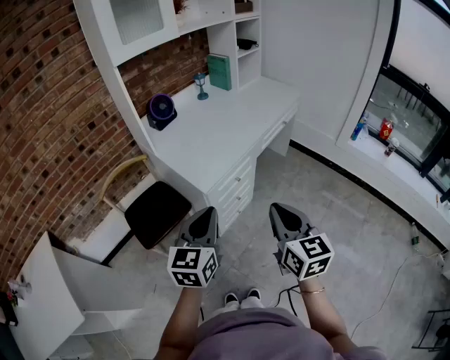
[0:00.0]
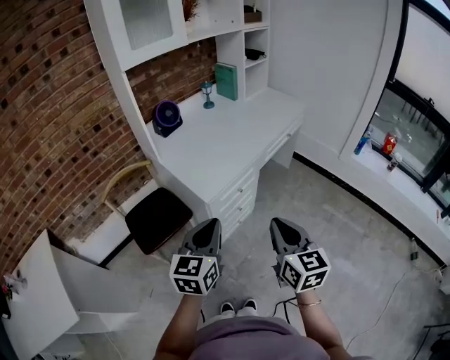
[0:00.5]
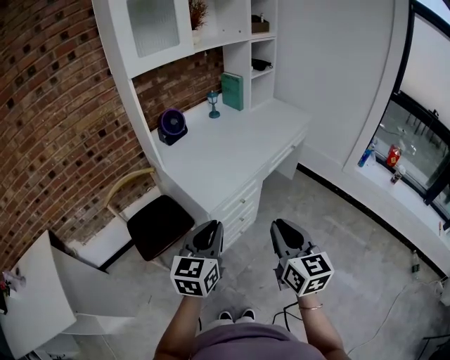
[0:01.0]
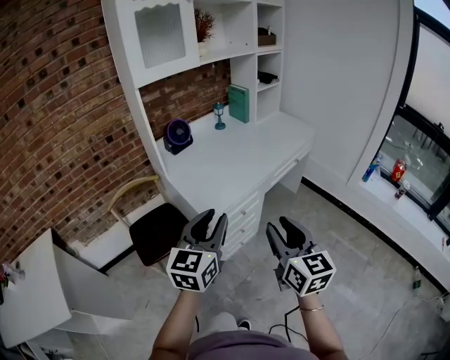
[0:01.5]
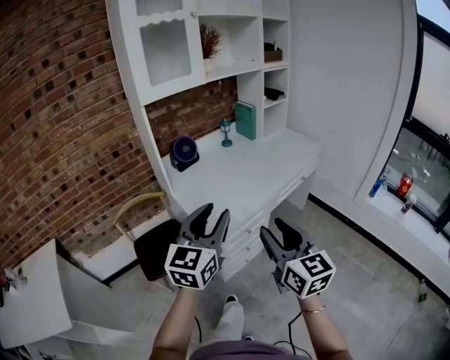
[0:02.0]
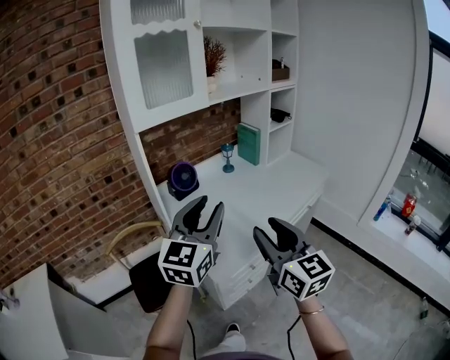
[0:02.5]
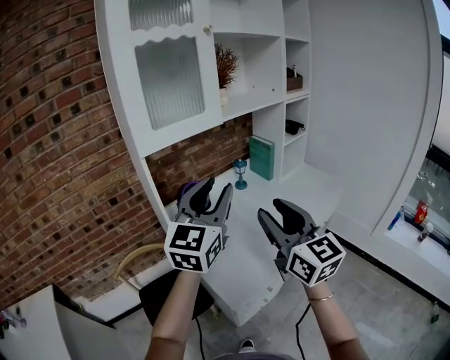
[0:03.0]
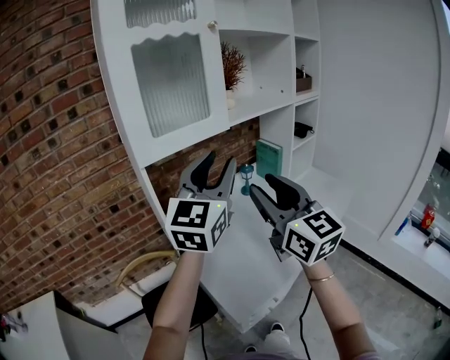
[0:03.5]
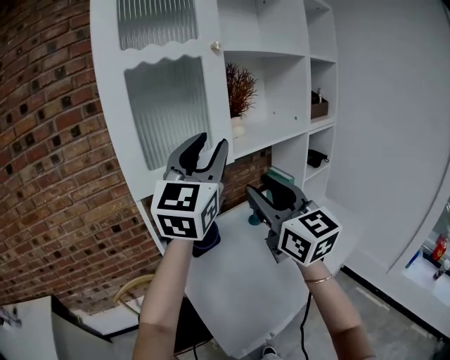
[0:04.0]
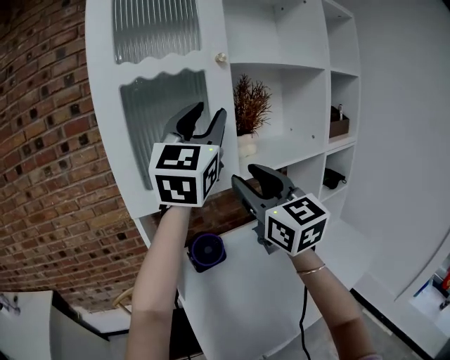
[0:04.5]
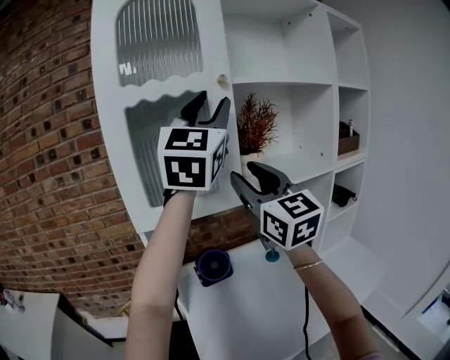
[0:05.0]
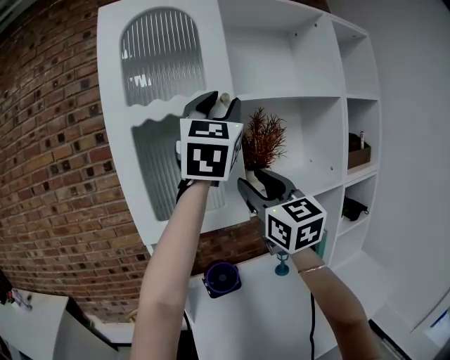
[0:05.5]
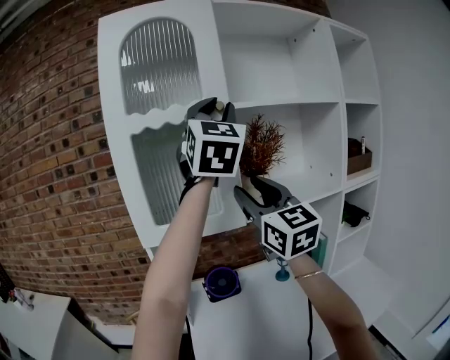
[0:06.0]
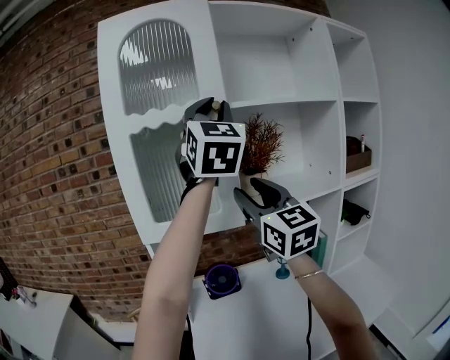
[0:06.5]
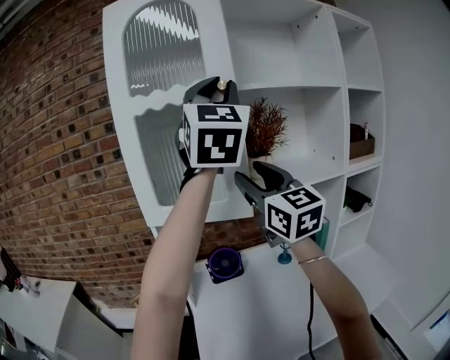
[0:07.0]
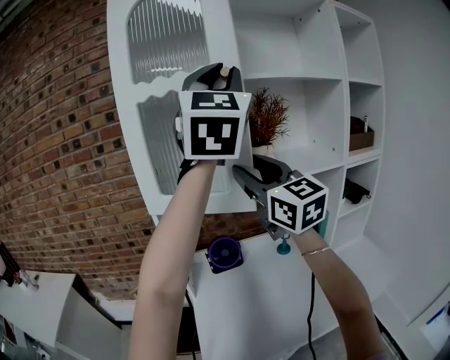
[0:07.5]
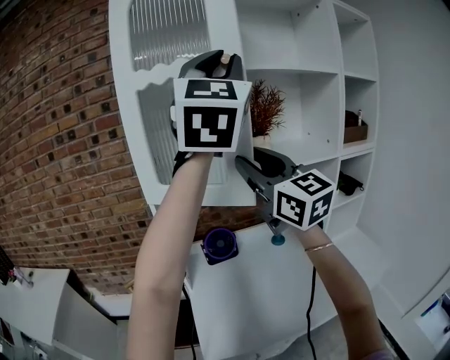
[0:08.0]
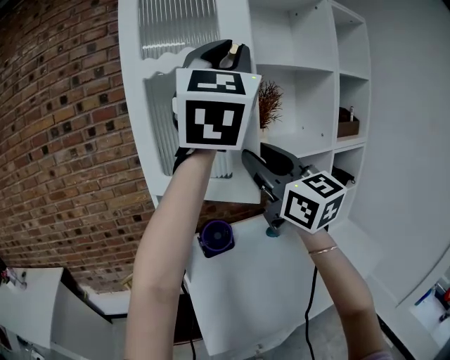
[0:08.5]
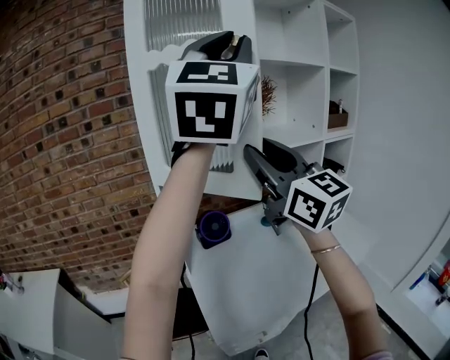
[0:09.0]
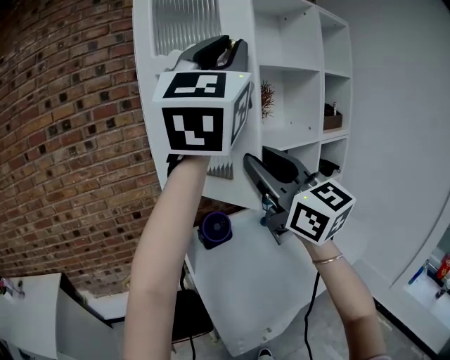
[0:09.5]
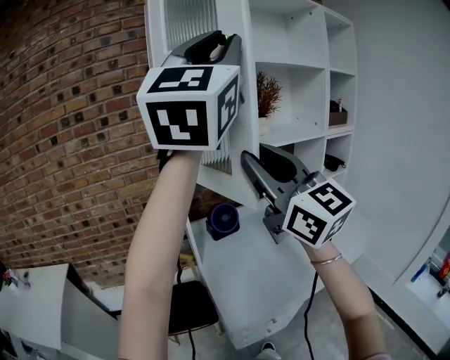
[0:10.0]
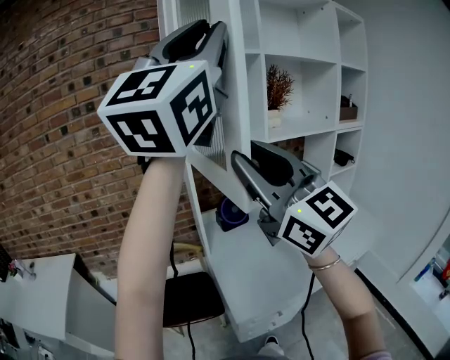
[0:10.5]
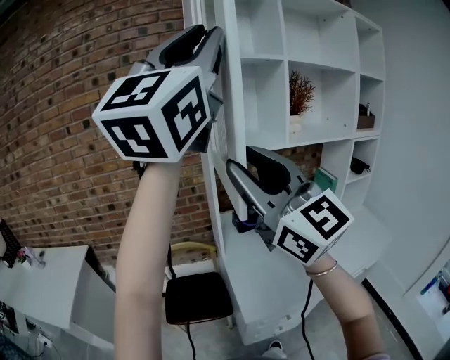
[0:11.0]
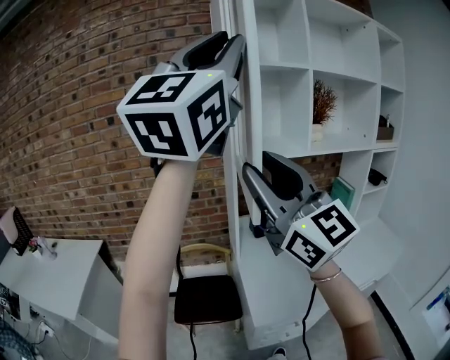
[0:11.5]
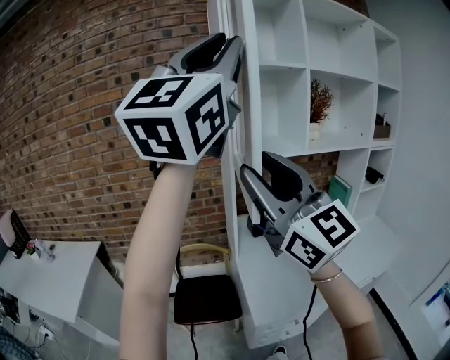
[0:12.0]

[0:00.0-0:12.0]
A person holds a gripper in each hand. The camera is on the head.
0:00.0 to 0:02.0: The right gripper shifts some 10 cm forward and upward, and opens, while the left gripper travels upward and forward by approximately 15 cm, and opens its fingers.
0:02.0 to 0:04.0: The pair of grippers is taken forward, roughly 40 cm. The two grippers go approximately 25 cm upward. The right gripper rotates about 20 degrees. Meanwhile the left gripper changes its angle by some 30 degrees.
0:04.0 to 0:06.0: The right gripper is displaced forward and upward by roughly 15 cm. Meanwhile the left gripper shifts approximately 20 cm upward and forward, and turns by approximately 40 degrees.
0:06.0 to 0:08.0: The right gripper travels backward by some 5 cm. The left gripper heads backward, covering some 10 cm.
0:08.0 to 0:10.0: The two grippers go approximately 20 cm backward and to the left.
0:10.0 to 0:12.0: The right gripper goes some 15 cm to the left and backward. The left gripper shifts roughly 15 cm to the left.

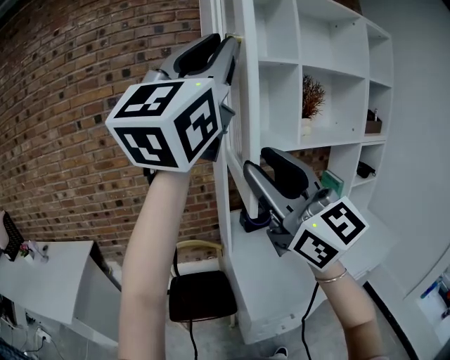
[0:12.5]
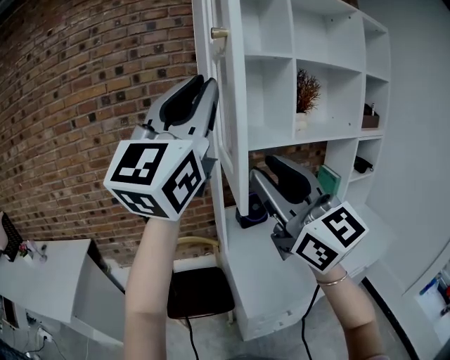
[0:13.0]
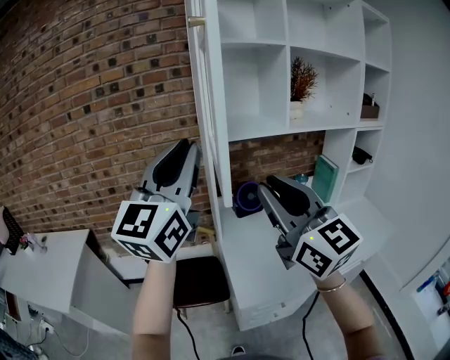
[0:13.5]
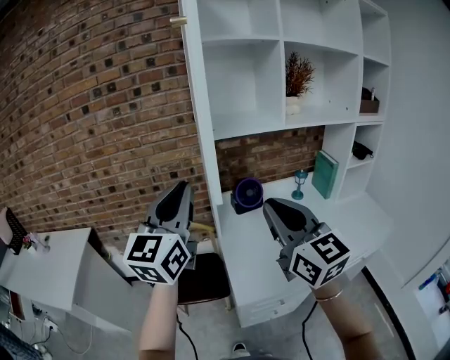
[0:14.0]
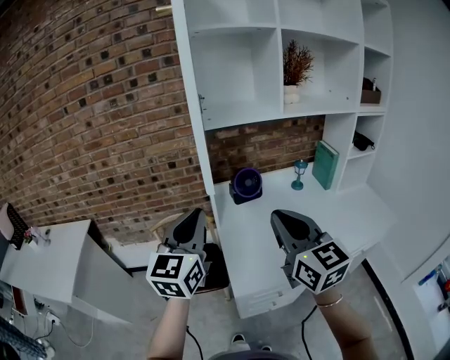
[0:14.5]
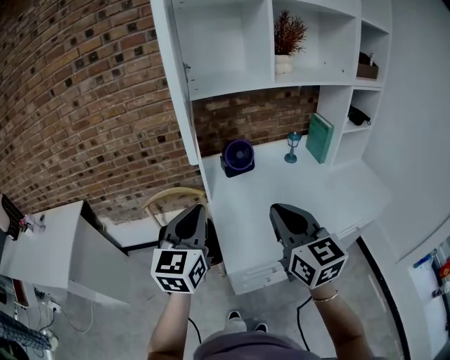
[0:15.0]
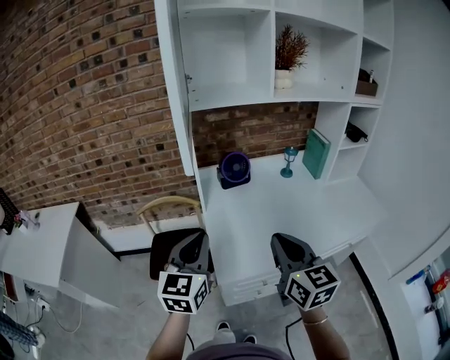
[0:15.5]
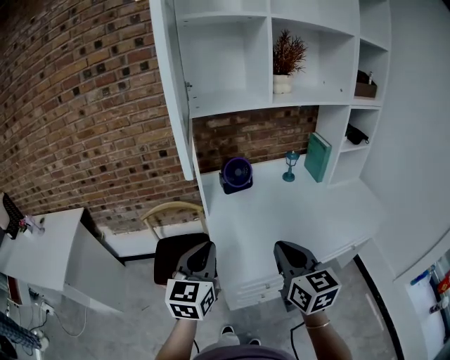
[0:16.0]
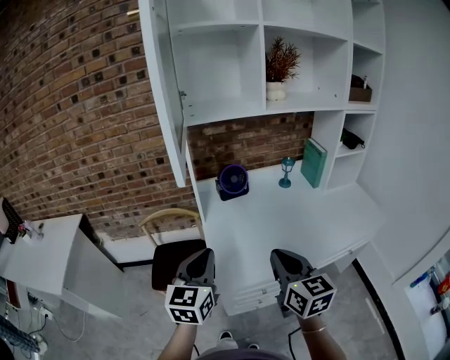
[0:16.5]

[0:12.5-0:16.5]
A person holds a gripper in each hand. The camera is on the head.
0:12.5 to 0:14.5: The right gripper heads downward and to the right, covering about 25 cm, turns by roughly 30 degrees, and closes up. The left gripper goes approximately 40 cm downward, and angles its fingers downward, by about 30 degrees.
0:14.5 to 0:16.5: The grippers both shift downward, to the right and backward by some 15 cm.

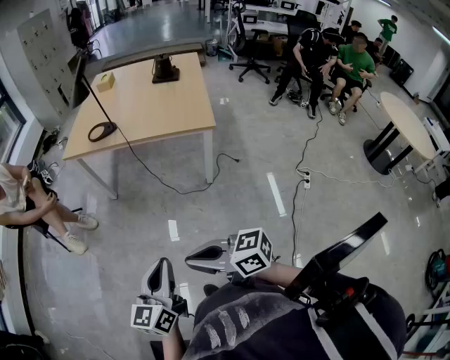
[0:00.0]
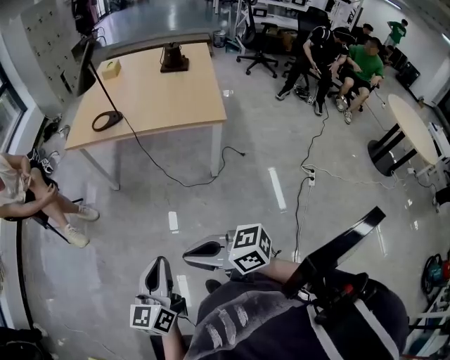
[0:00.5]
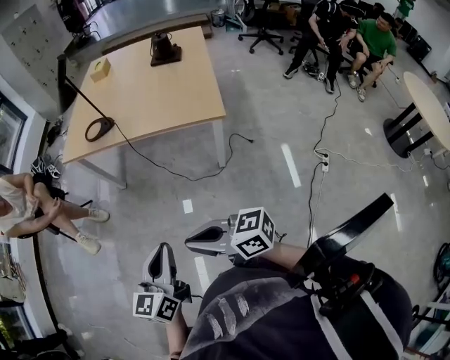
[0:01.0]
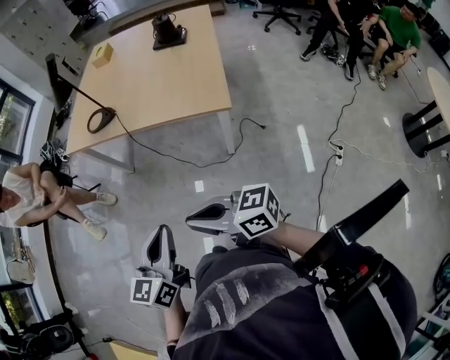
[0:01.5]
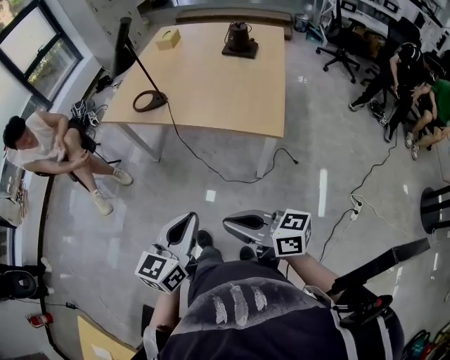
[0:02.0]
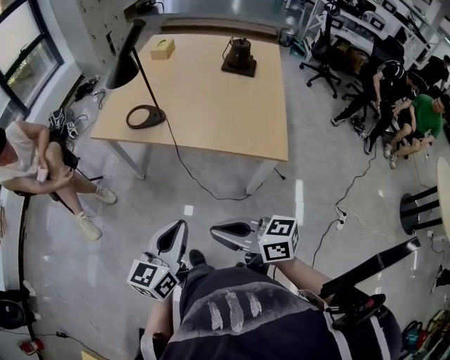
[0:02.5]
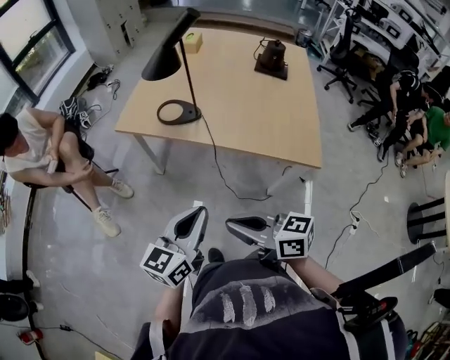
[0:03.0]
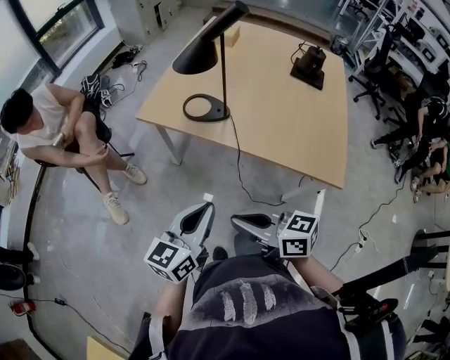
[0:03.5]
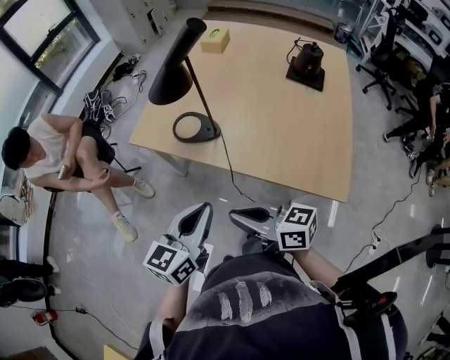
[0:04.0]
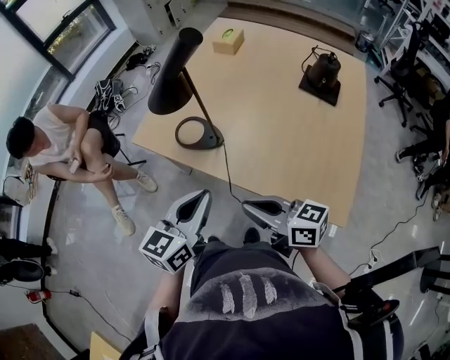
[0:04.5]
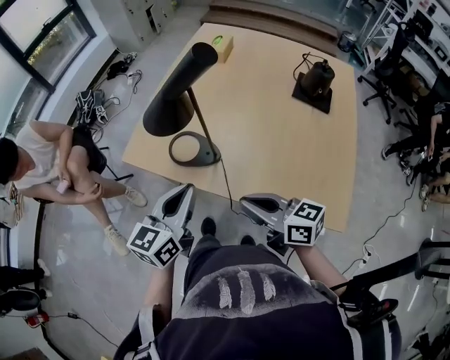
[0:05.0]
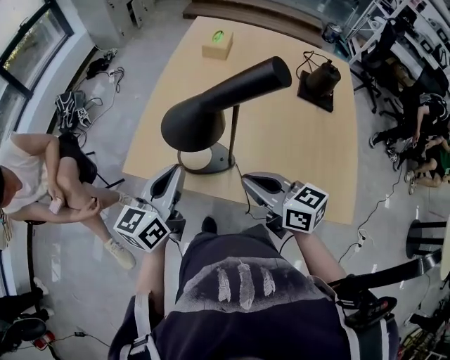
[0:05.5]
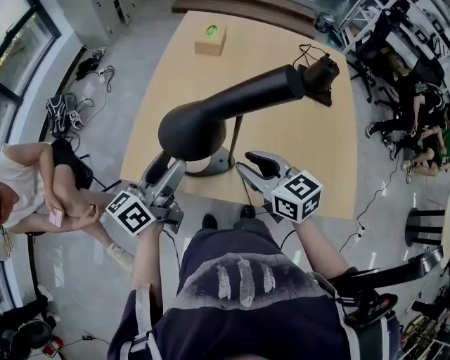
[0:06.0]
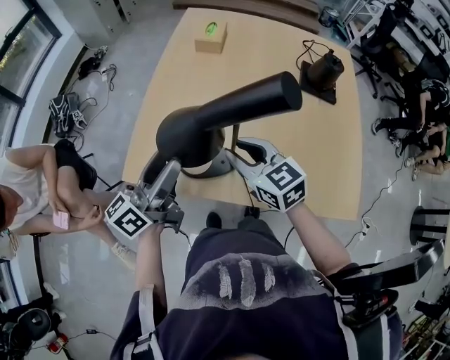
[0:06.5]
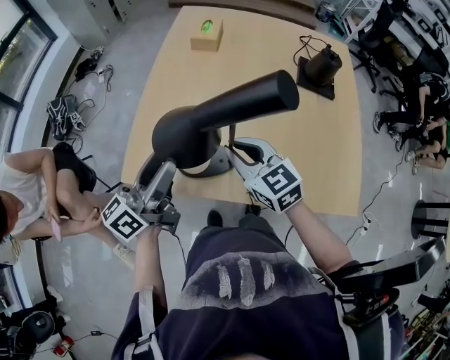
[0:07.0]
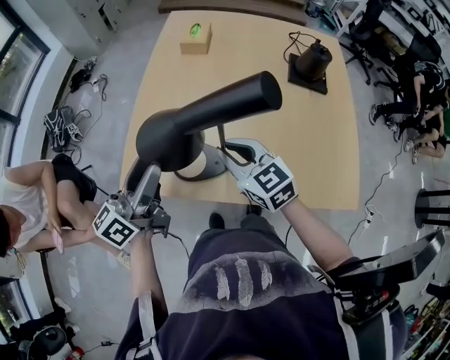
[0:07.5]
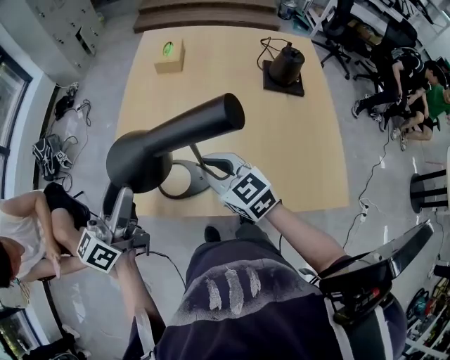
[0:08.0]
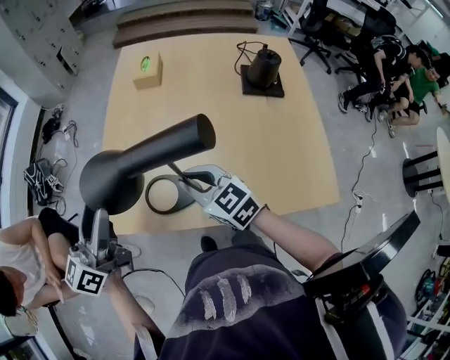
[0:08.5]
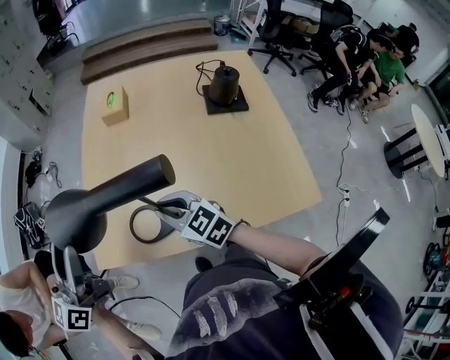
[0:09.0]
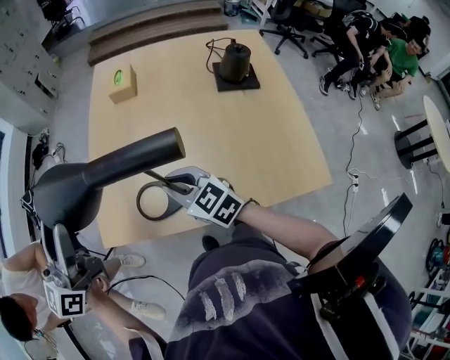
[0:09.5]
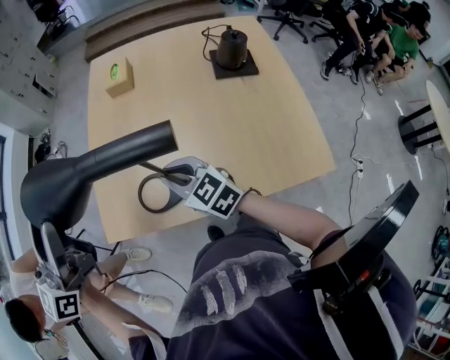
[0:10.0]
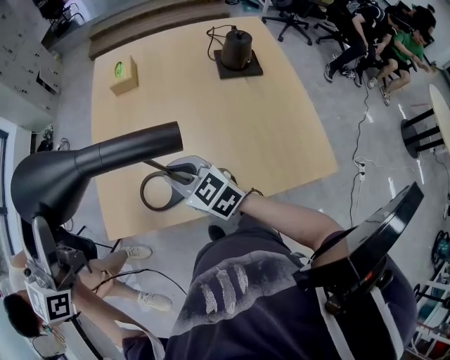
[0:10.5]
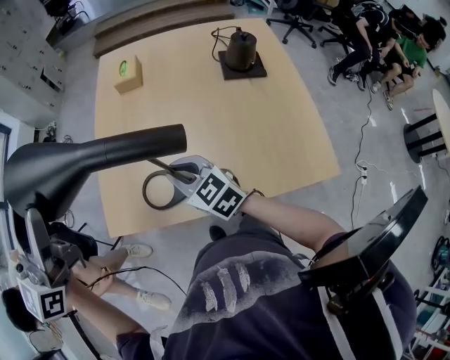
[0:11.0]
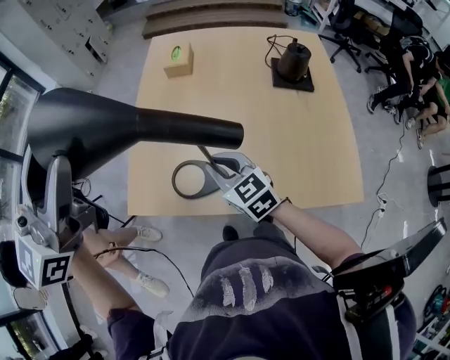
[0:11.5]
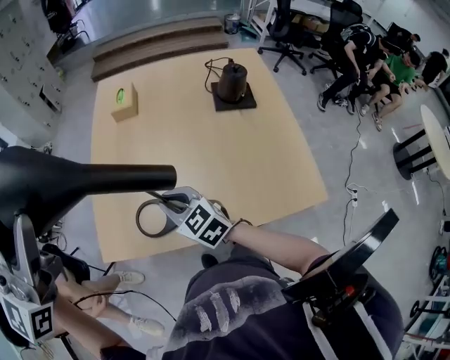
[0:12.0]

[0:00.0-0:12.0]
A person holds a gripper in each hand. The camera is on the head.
0:00.0 to 0:02.0: The right gripper heads to the right and forward, covering approximately 25 cm. The left gripper shifts about 25 cm forward and to the right.
0:02.0 to 0:04.0: The grippers both shift forward by about 35 cm.
0:04.0 to 0:06.0: Both grippers travel together forward, approximately 30 cm. The left gripper turns by approximately 30 degrees, and opens its fingers; the right gripper rotates approximately 40 degrees, and opens.
0:06.0 to 0:08.0: The right gripper moves approximately 5 cm, and closes up, while the left gripper travels upward by about 5 cm.
0:08.0 to 0:10.0: The left gripper moves upward, about 15 cm, and turns by about 30 degrees.
0:10.0 to 0:12.0: The left gripper shifts roughly 10 cm upward and to the right, and rotates roughly 20 degrees.
